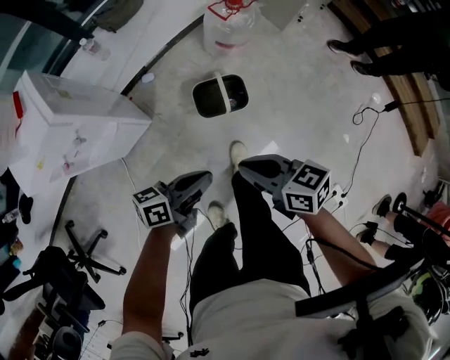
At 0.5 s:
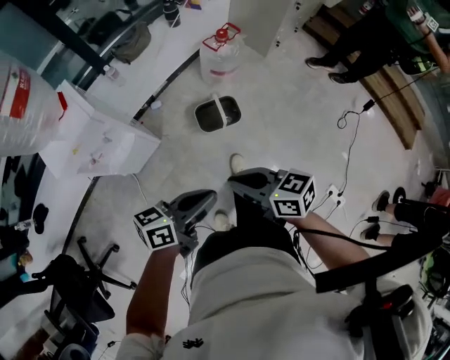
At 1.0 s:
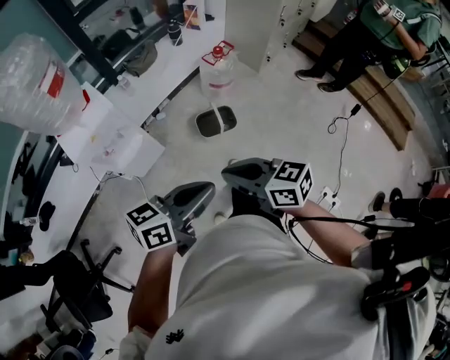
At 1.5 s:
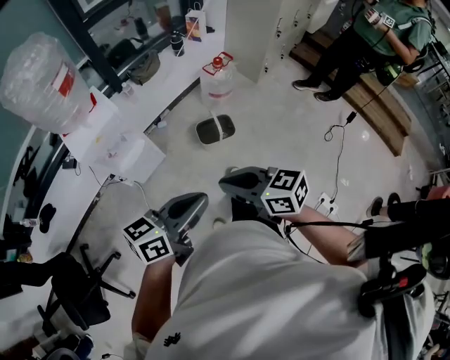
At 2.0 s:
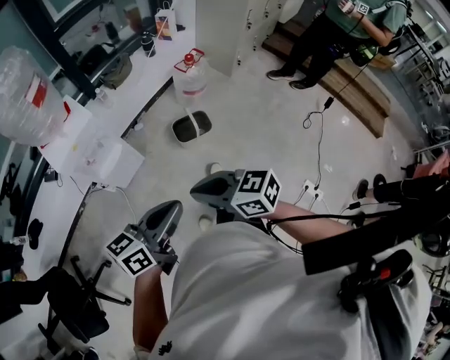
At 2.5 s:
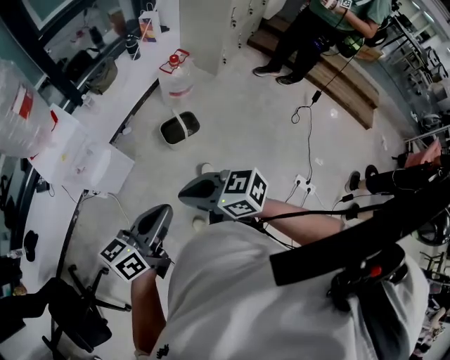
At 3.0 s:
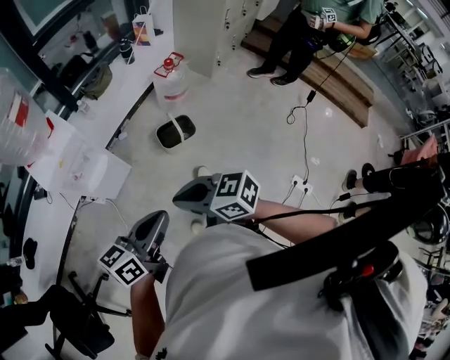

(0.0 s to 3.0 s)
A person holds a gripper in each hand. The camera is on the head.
0.0 s - 1.5 s: The two grippers go some 30 cm upward. The left gripper rotates some 20 degrees.
1.5 s - 3.0 s: The right gripper ends up approximately 5 cm from where it was.

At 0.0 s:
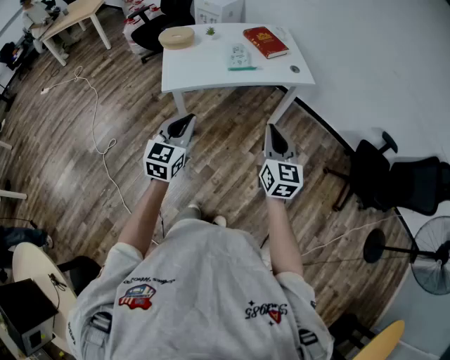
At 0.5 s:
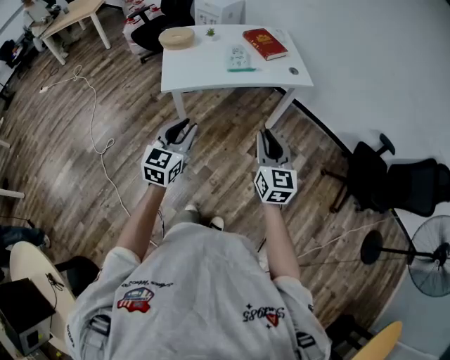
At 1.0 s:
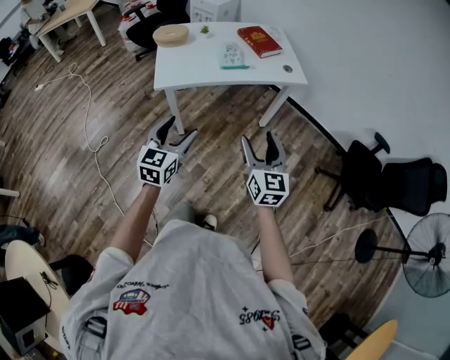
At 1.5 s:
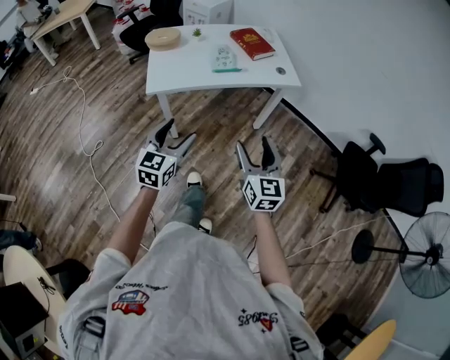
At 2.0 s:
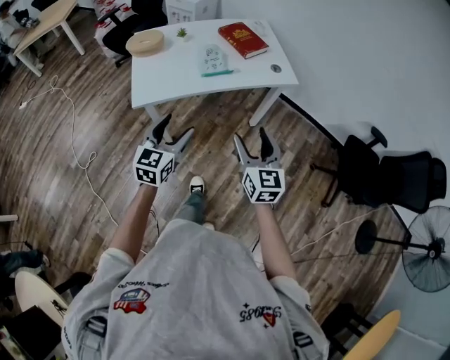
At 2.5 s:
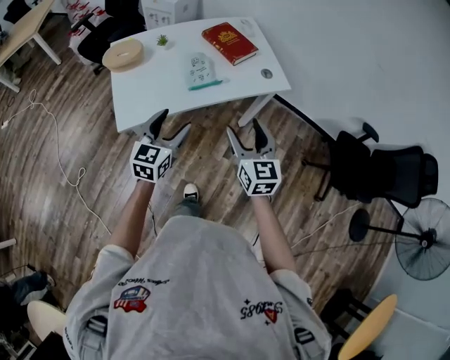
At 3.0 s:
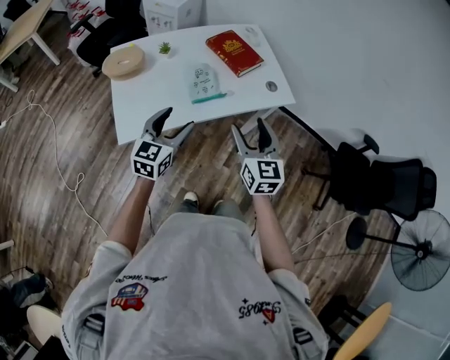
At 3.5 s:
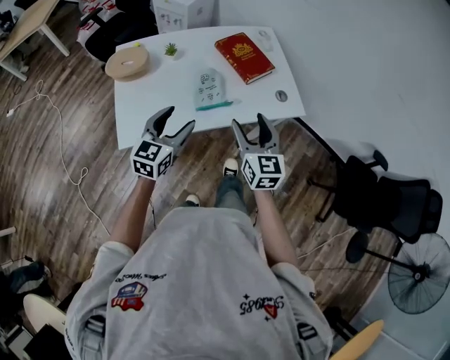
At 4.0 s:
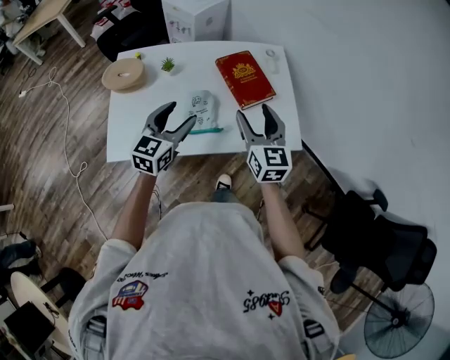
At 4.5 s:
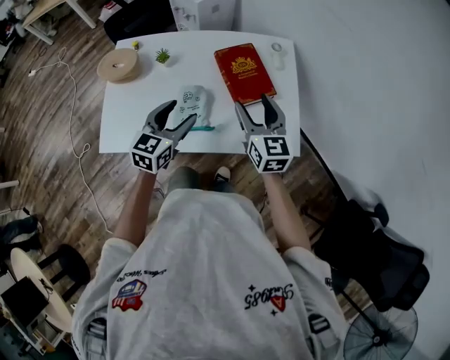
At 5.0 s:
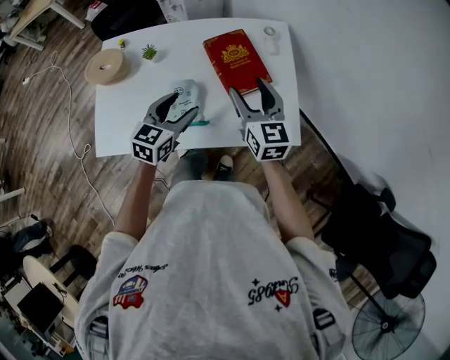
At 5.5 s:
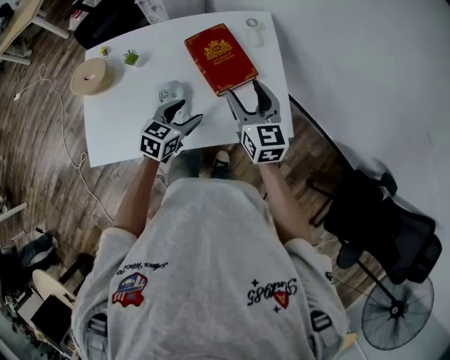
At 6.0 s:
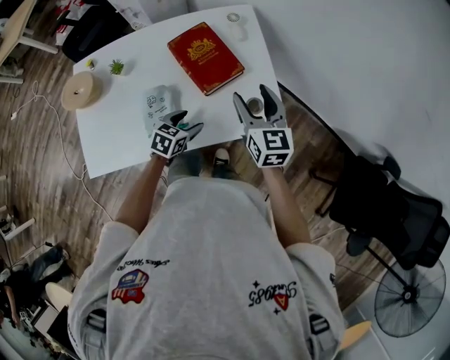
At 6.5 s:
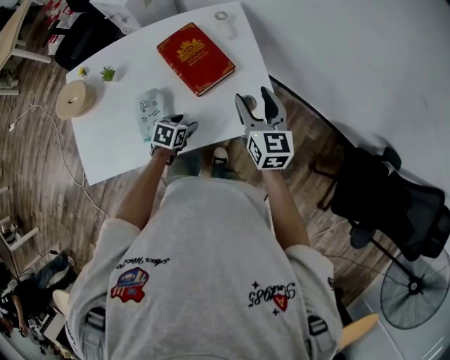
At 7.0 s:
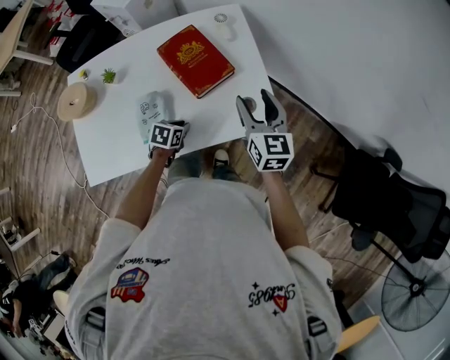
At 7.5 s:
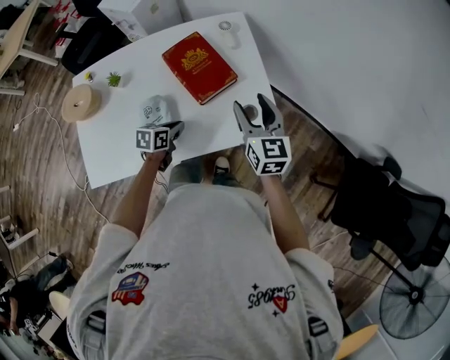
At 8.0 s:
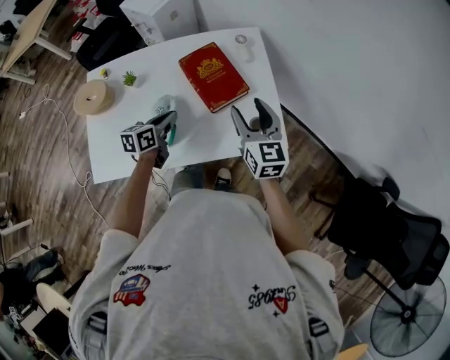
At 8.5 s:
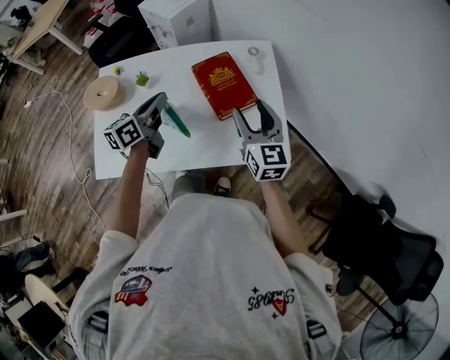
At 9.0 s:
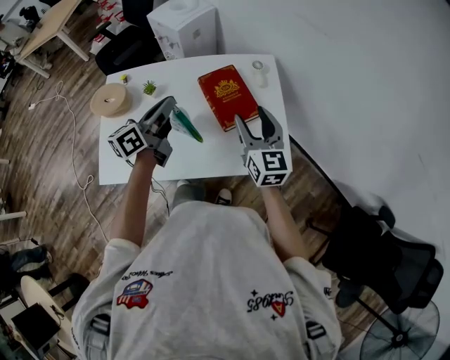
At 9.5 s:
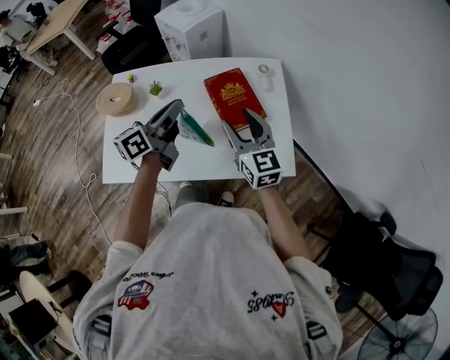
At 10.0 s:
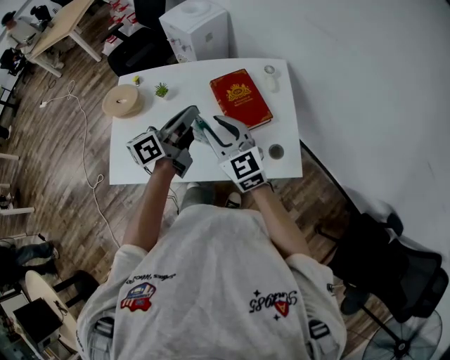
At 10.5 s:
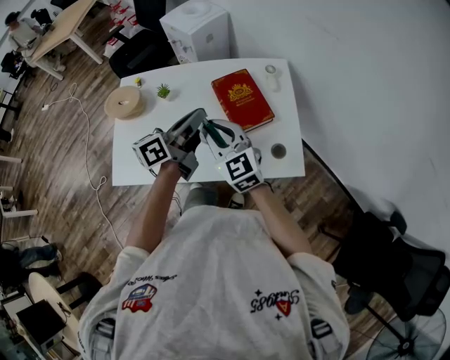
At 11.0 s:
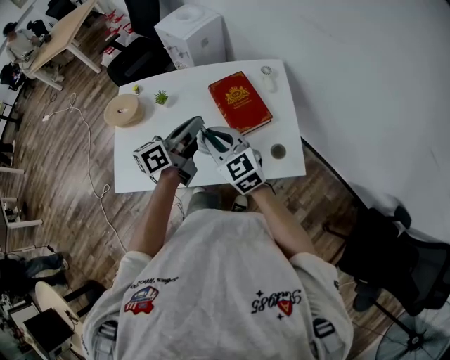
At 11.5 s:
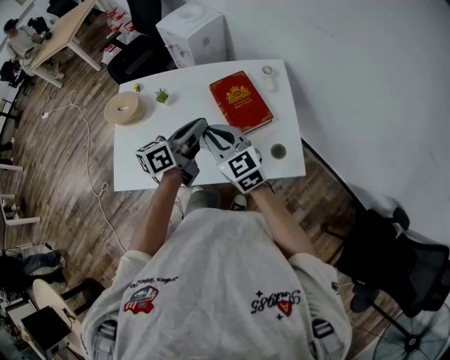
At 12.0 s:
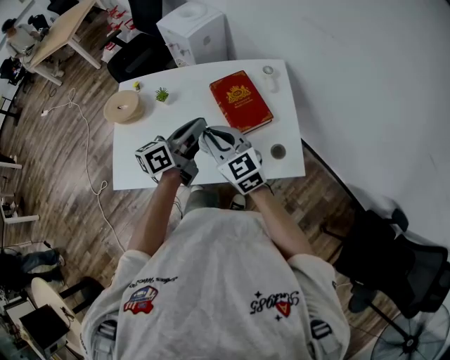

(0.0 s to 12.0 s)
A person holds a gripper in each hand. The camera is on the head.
0.0 s - 2.0 s: Both grippers travel together forward, some 10 cm. The right gripper opens its fingers. Meanwhile the left gripper opens its fingers.
2.0 s - 4.0 s: The pair of grippers is taken forward, roughly 40 cm.
4.0 s - 6.0 s: The right gripper travels to the right, forward and downward by roughly 20 cm. The left gripper moves downward and to the right, some 30 cm, and points its fingers about 30 degrees further downward.
6.0 s - 8.0 s: The left gripper heads to the left and upward, covering some 15 cm, rotates approximately 30 degrees, and closes its fingers.
8.0 s - 10.0 s: The right gripper heads to the left, covering approximately 20 cm, turns by some 30 degrees, and closes. The left gripper moves upward, approximately 20 cm, and points its fingers some 30 degrees further upward.
10.0 s - 12.0 s: The grippers move only a little.

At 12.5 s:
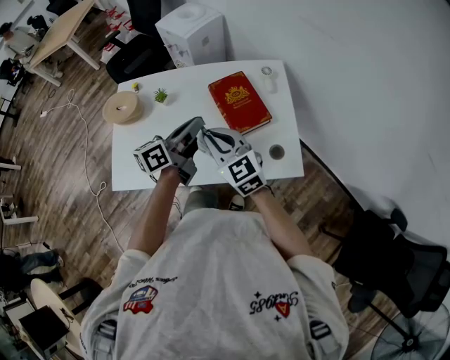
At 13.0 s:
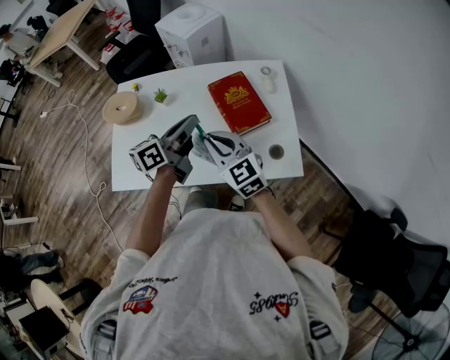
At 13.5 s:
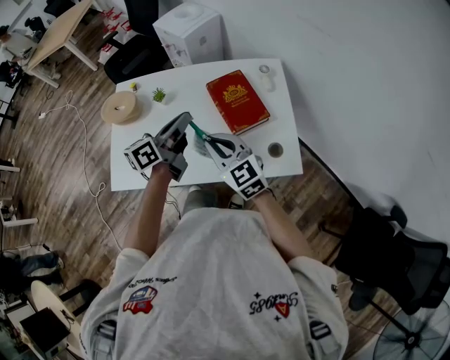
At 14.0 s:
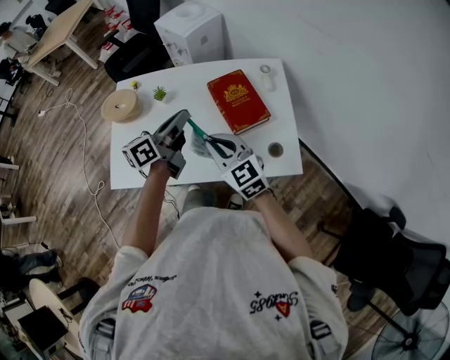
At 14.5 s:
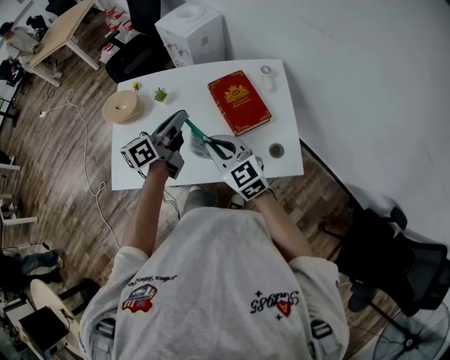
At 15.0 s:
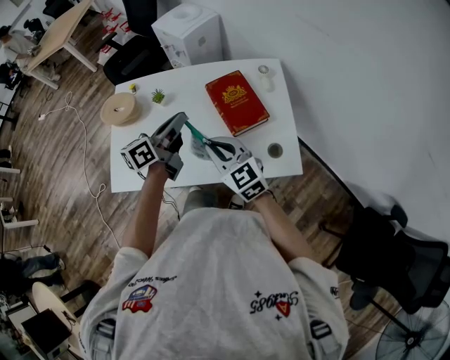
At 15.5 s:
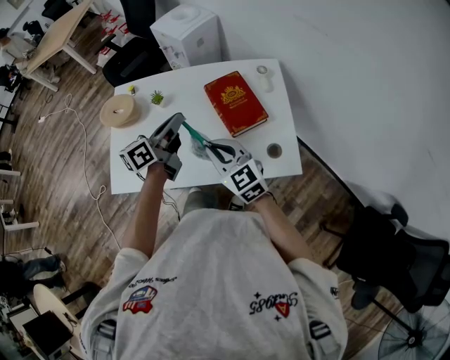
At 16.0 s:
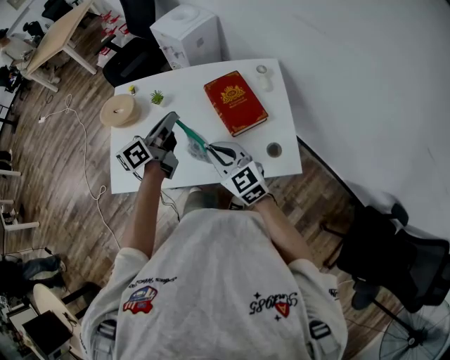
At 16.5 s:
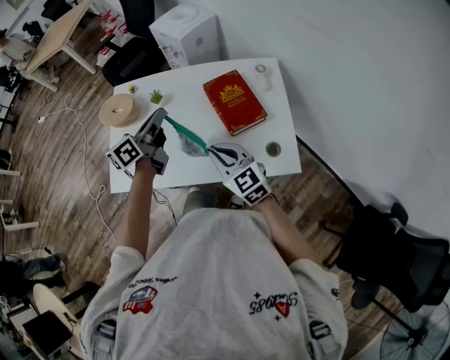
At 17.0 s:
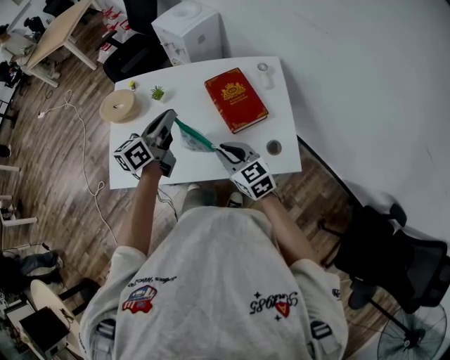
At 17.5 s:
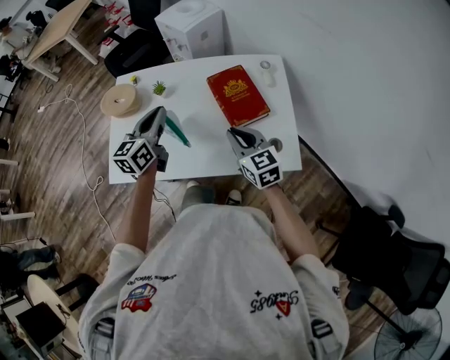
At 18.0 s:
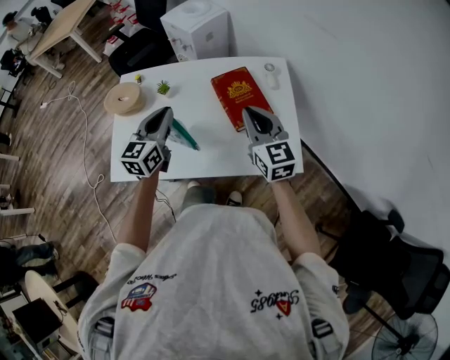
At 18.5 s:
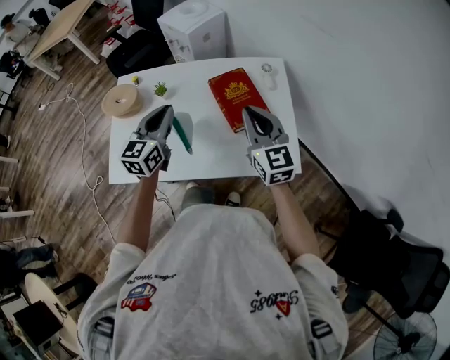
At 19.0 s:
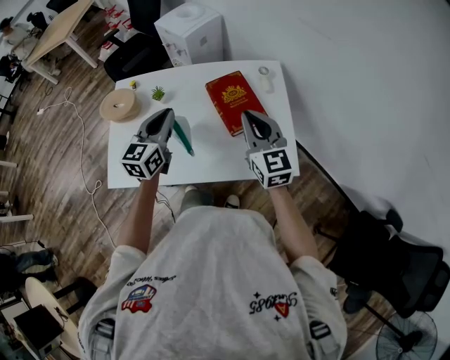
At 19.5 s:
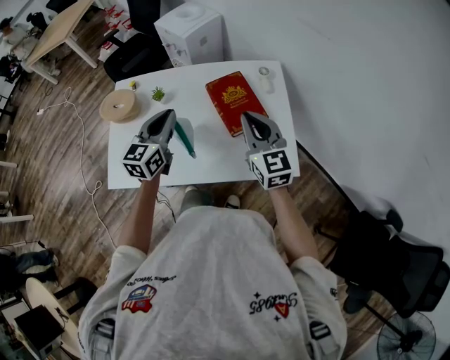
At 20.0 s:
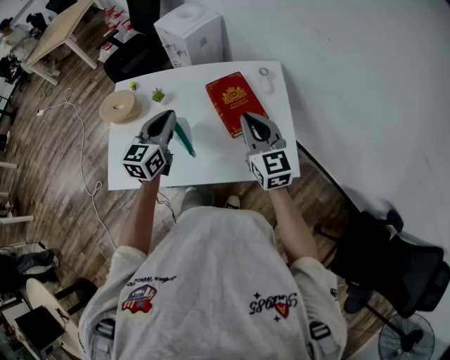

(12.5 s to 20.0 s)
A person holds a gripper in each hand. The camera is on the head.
12.5 s - 14.5 s: The grippers stay close to where they were, moving slightly.
14.5 s - 16.5 s: The grippers stay close to where they were, moving slightly.
16.5 s - 18.0 s: The right gripper shifts some 15 cm to the right, upward and forward, and swivels roughly 20 degrees, while the left gripper turns by roughly 40 degrees.
18.0 s - 20.0 s: There are only small adjustments of the grippers.

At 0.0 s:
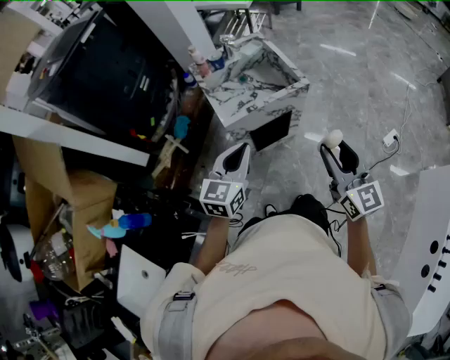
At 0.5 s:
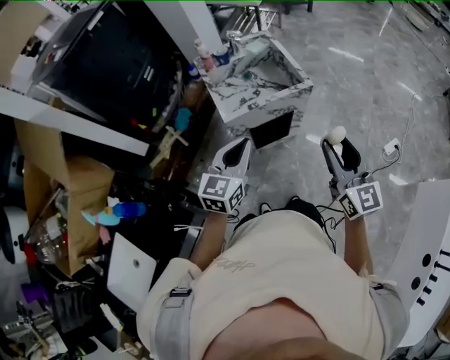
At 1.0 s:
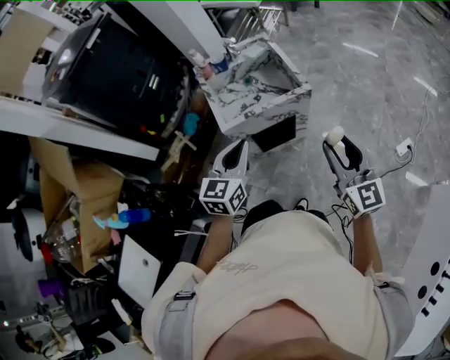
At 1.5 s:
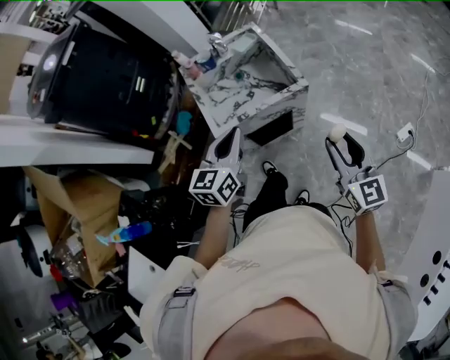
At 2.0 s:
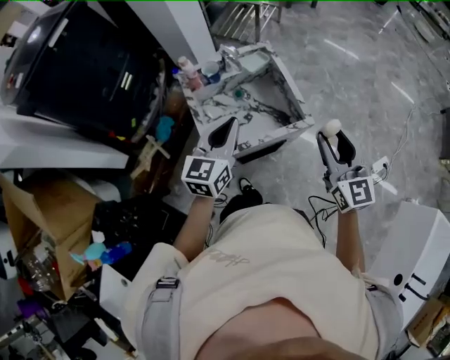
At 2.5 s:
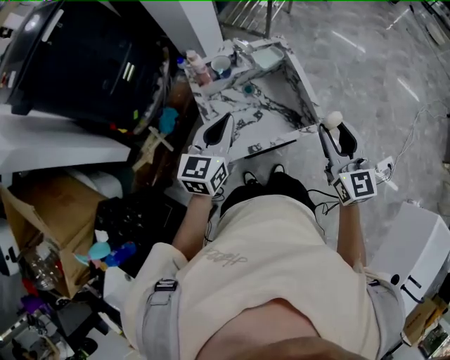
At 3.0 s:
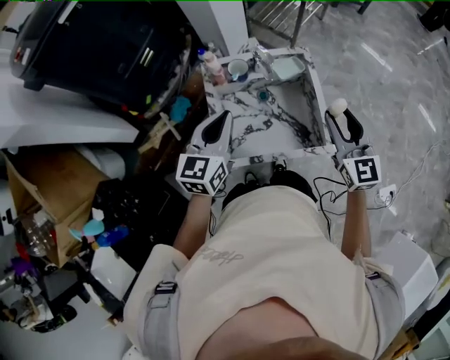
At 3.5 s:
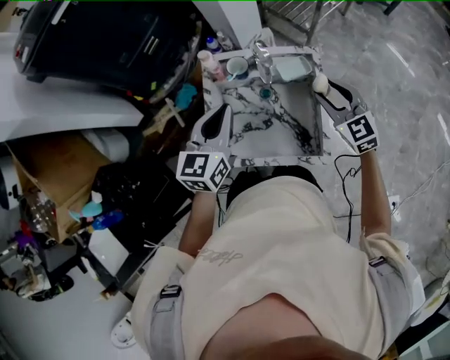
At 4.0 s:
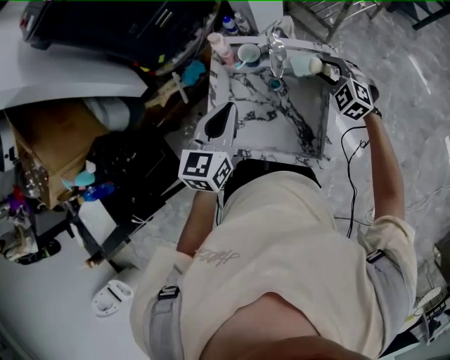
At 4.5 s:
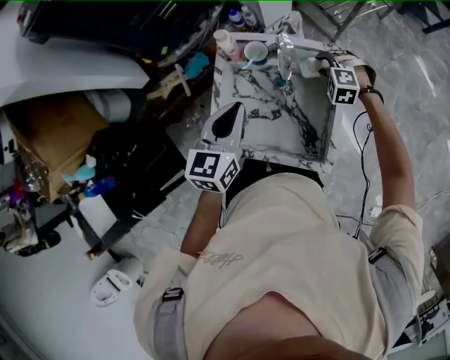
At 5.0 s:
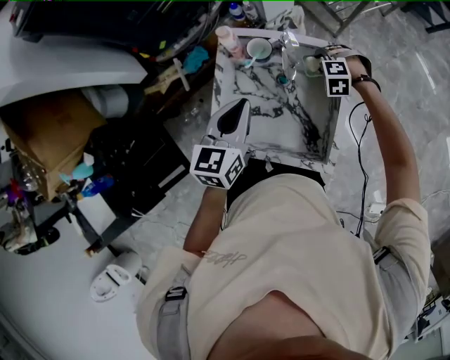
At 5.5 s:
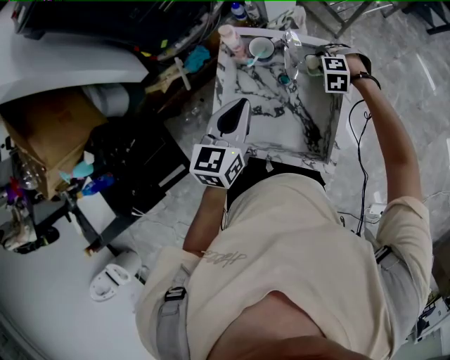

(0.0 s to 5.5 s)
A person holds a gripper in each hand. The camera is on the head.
0.0 s - 2.0 s: Both grippers travel together forward, approximately 25 cm.
2.0 s - 3.5 s: The left gripper changes place by about 15 cm, and swivels about 20 degrees; the right gripper shifts by about 30 cm, and changes its angle by about 40 degrees.
3.5 s - 5.5 s: The right gripper goes about 20 cm downward, and tilts its fingers some 50 degrees downward. Meanwhile the left gripper heads downward, covering approximately 5 cm.
